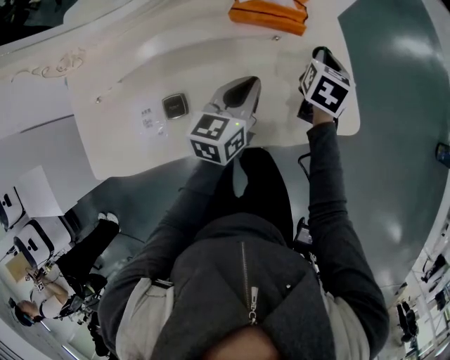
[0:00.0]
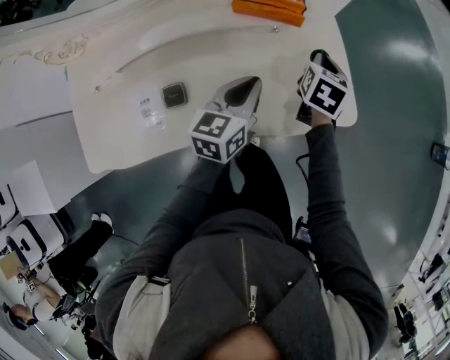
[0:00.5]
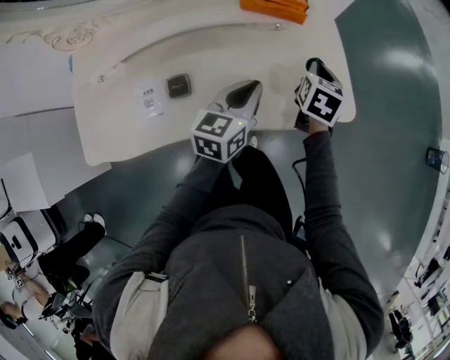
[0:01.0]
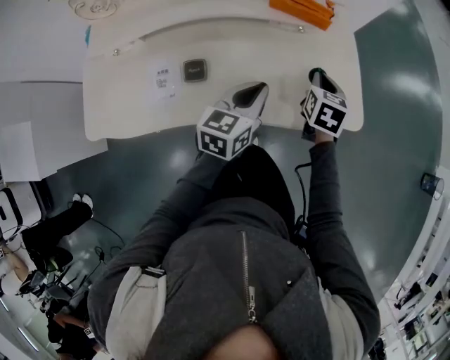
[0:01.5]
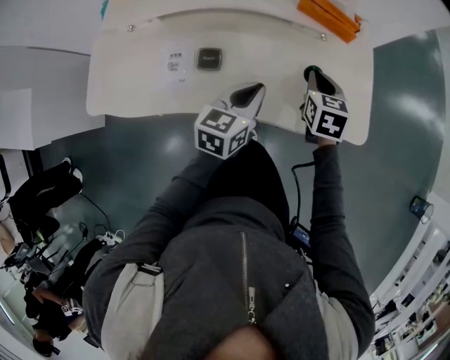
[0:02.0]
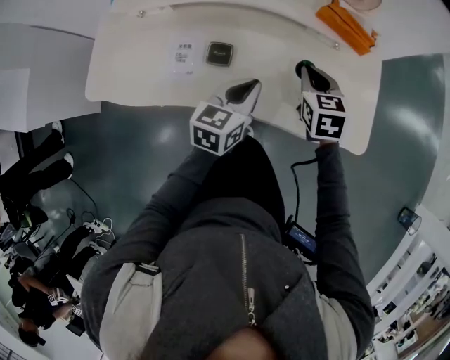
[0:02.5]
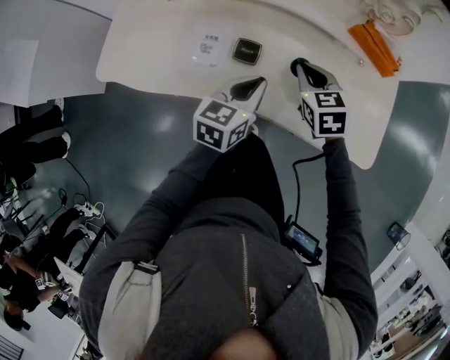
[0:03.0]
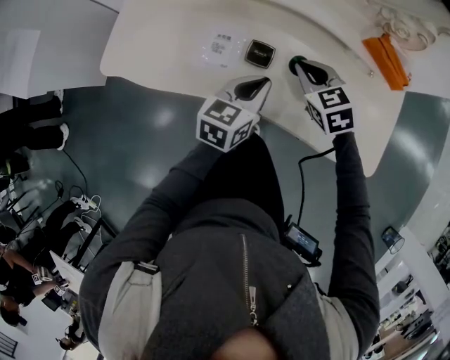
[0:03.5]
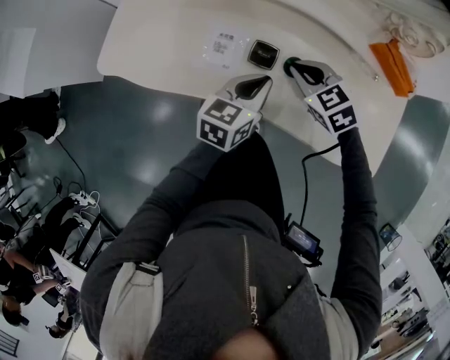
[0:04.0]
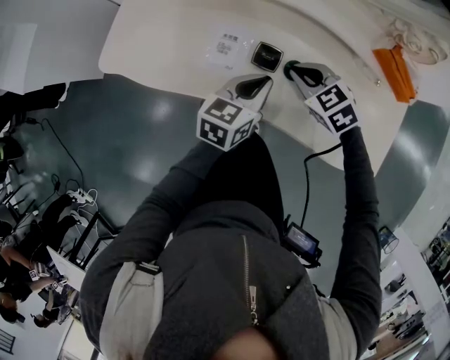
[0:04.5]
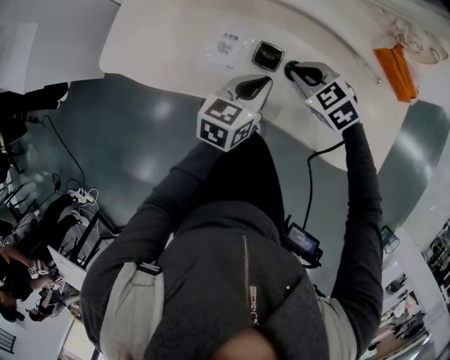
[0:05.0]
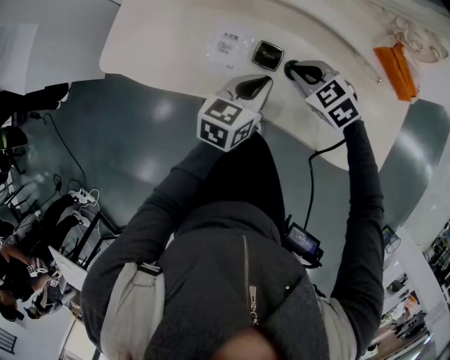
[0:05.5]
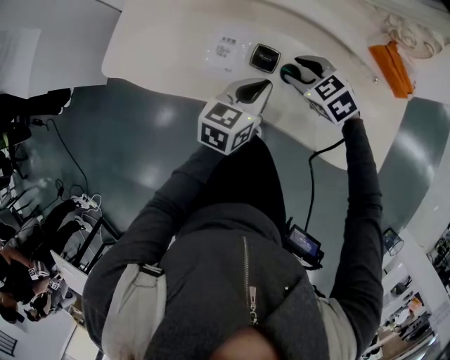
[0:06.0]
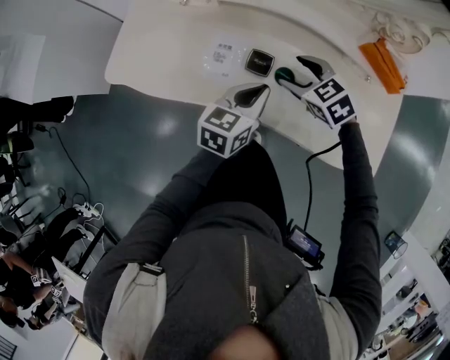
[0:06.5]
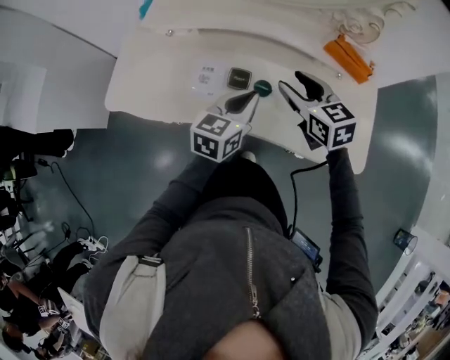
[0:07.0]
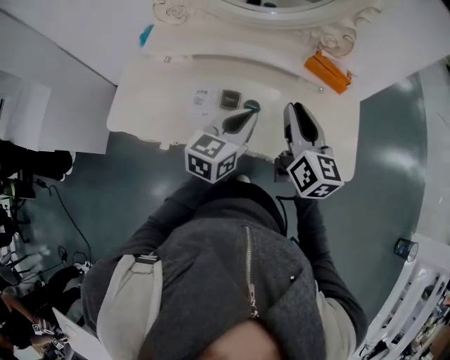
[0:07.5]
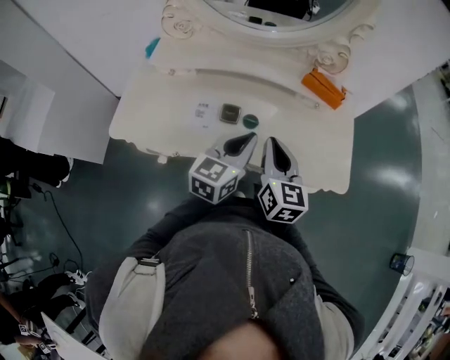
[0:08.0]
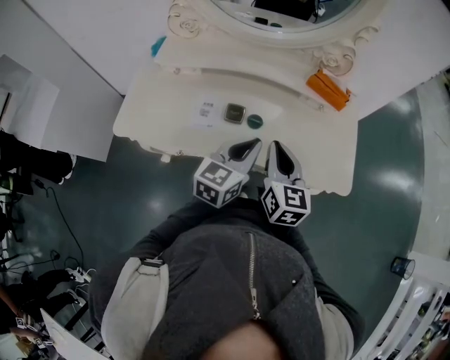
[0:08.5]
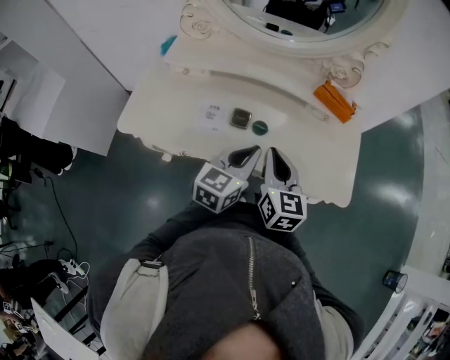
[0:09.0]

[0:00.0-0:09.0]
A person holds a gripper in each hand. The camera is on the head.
0:00.0 to 0:02.0: The left gripper goes approximately 10 cm backward, while the right gripper shifts some 15 cm backward and to the left, and rotates roughly 40 degrees.
0:02.0 to 0:04.5: The left gripper ends up roughly 15 cm from where it was. Meanwhile the right gripper moves approximately 20 cm, and swivels roughly 60 degrees.
0:04.5 to 0:07.0: The right gripper heads upward and to the right, covering approximately 15 cm, turns by roughly 40 degrees, and opens up. The left gripper moves upward, some 5 cm.
0:07.0 to 0:09.0: The left gripper goes roughly 5 cm backward; the right gripper shifts some 10 cm backward, rotates about 30 degrees, and closes its fingers.

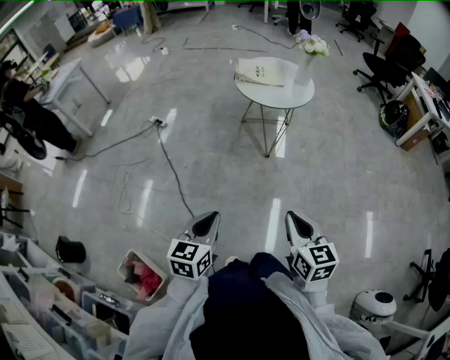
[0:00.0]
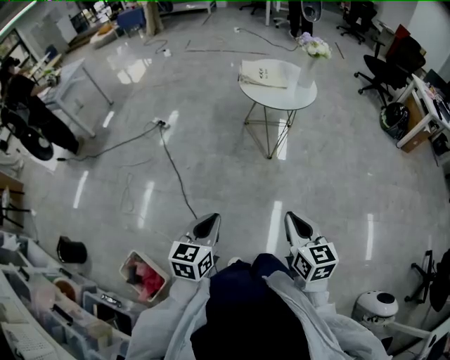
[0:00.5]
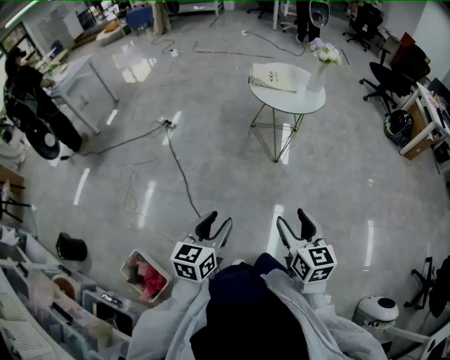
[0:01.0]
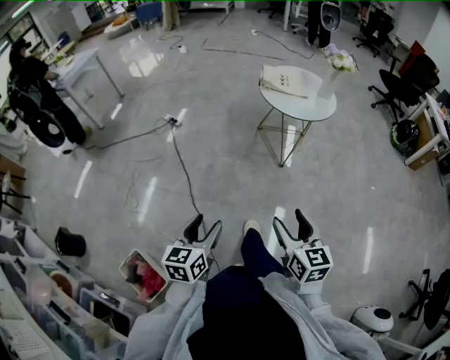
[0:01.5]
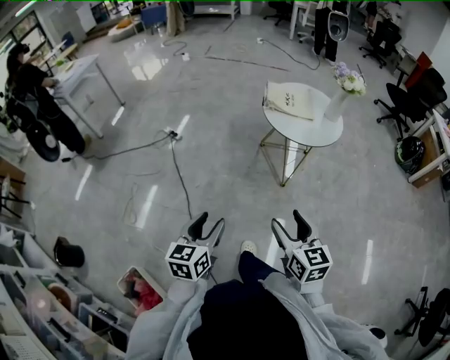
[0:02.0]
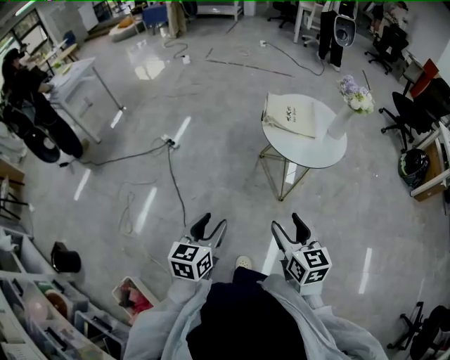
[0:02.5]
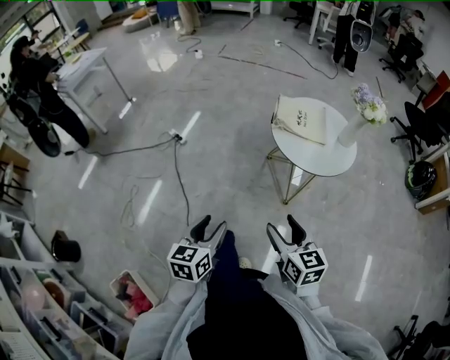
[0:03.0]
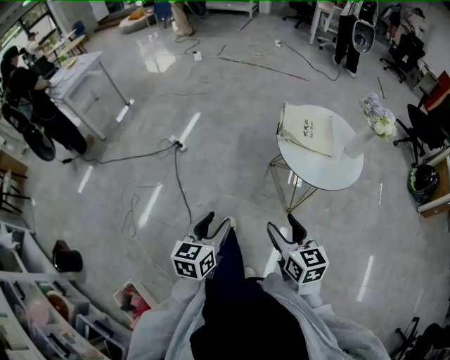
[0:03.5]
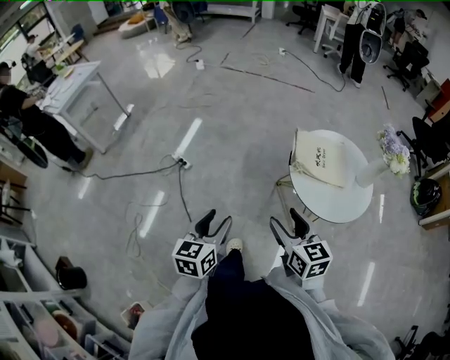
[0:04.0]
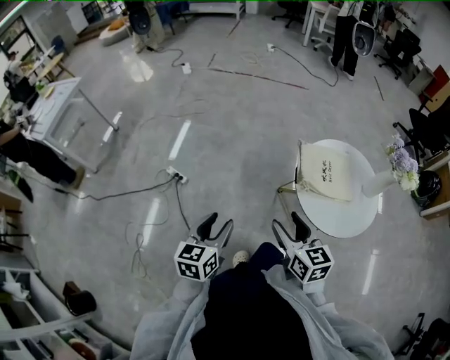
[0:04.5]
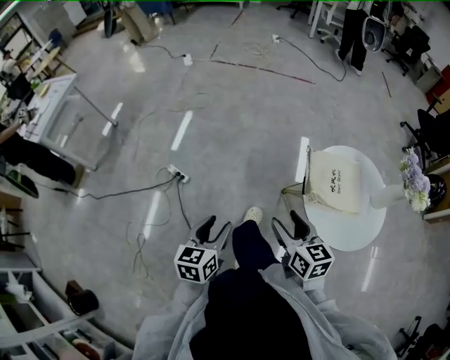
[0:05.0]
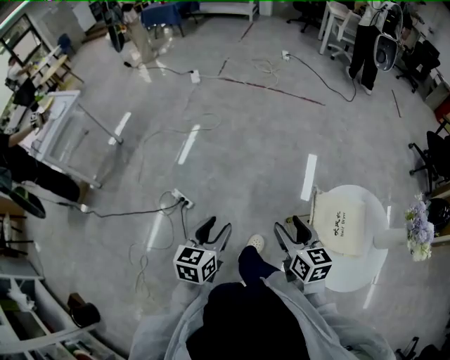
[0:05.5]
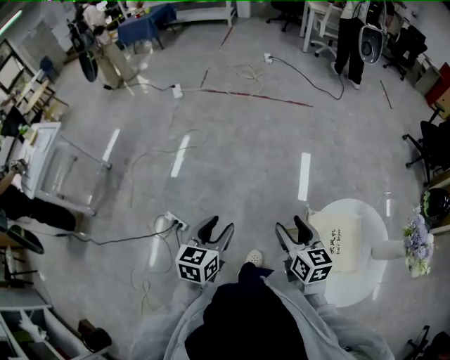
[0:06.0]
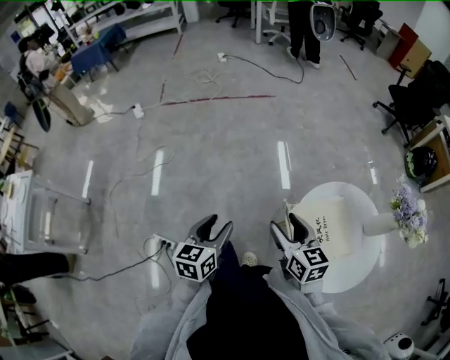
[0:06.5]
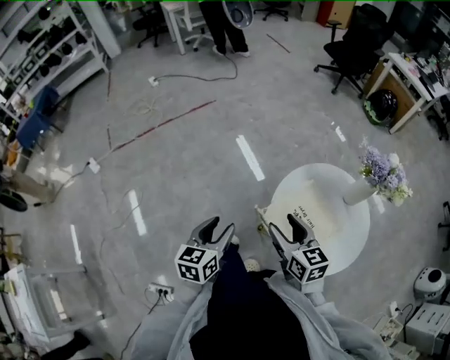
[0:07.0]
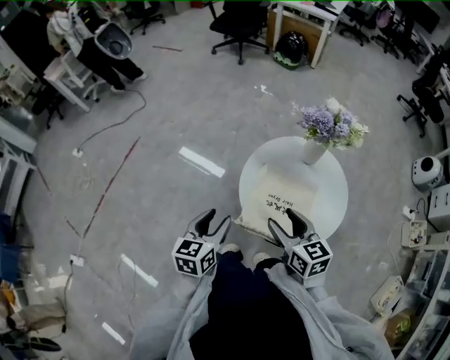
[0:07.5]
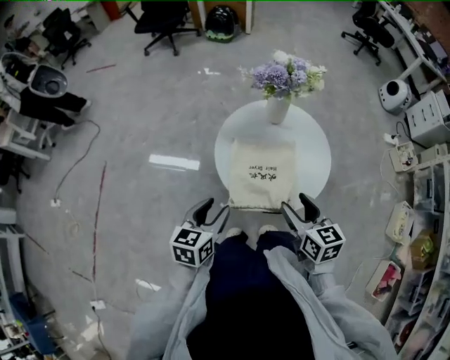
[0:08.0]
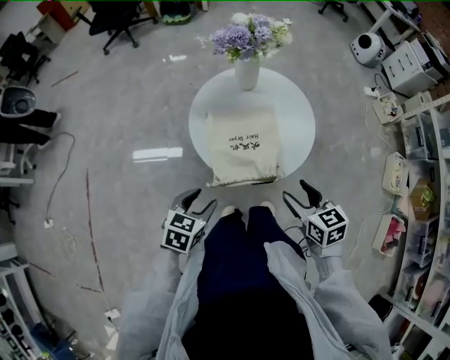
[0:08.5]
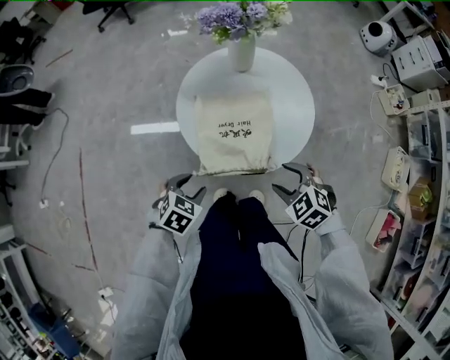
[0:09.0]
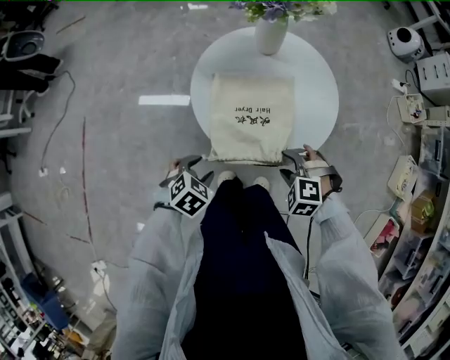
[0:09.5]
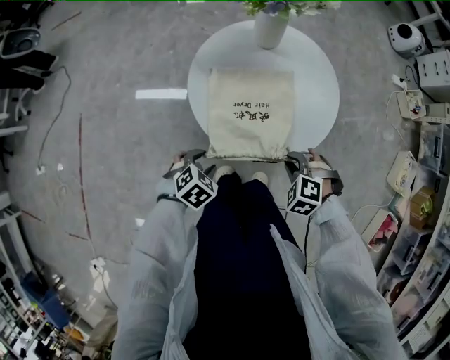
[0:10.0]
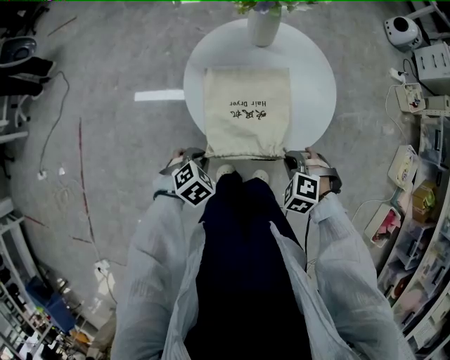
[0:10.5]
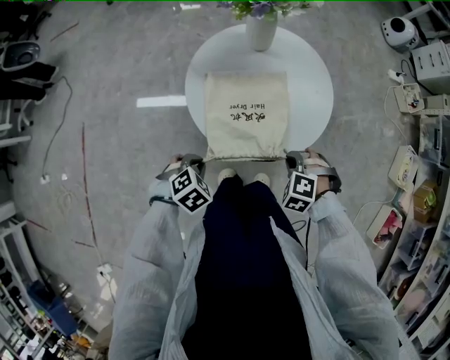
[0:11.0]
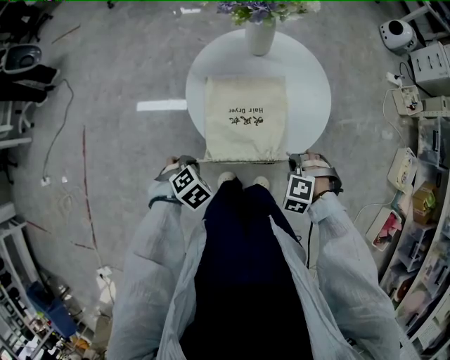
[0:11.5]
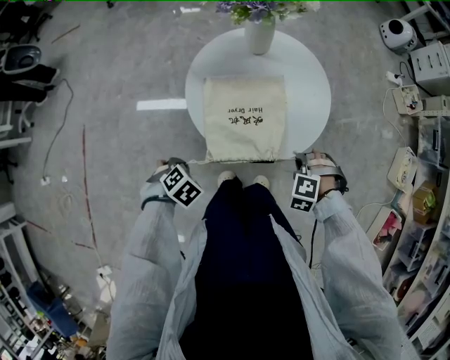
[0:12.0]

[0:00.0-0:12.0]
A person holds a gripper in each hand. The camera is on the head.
0:00.0 to 0:02.0: Both grippers travel together forward and to the left, about 15 cm. The right gripper opens its fingers; the left gripper opens up.
0:02.0 to 0:04.0: Both grippers move forward, roughly 35 cm.
0:04.0 to 0:06.0: The two grippers go some 40 cm forward.
0:06.0 to 0:08.0: The left gripper moves some 35 cm, and changes its angle by roughly 90 degrees; the right gripper ends up about 20 cm from where it was, and changes its angle by approximately 90 degrees.
0:08.0 to 0:10.0: The two grippers go about 20 cm downward. The right gripper rolls counterclockwise, seen from behind, by about 60 degrees, and closes up. The left gripper tilts its fingers about 40 degrees downward.
0:10.0 to 0:12.0: The right gripper moves approximately 5 cm. The left gripper ends up approximately 5 cm from where it was, and closes up.

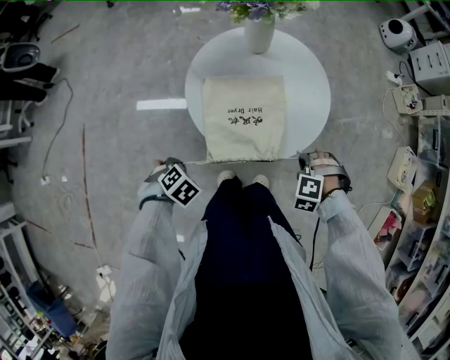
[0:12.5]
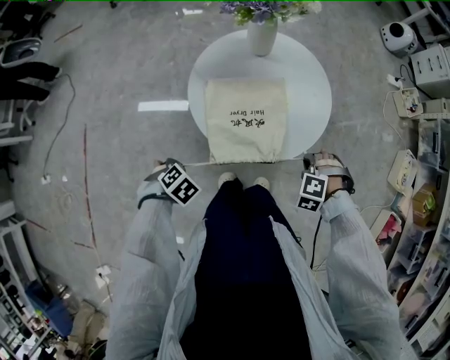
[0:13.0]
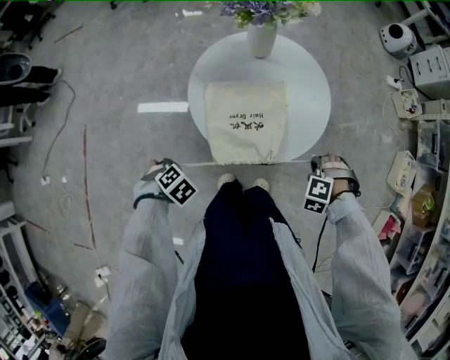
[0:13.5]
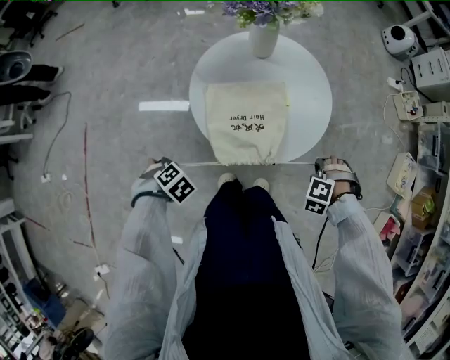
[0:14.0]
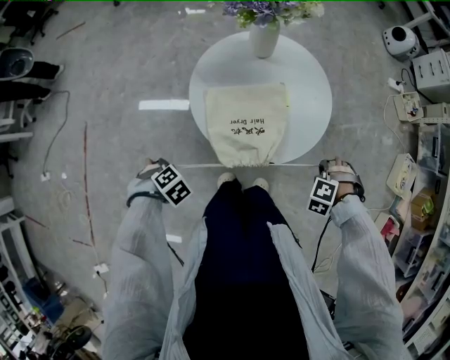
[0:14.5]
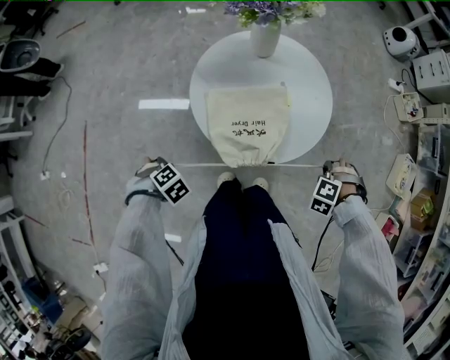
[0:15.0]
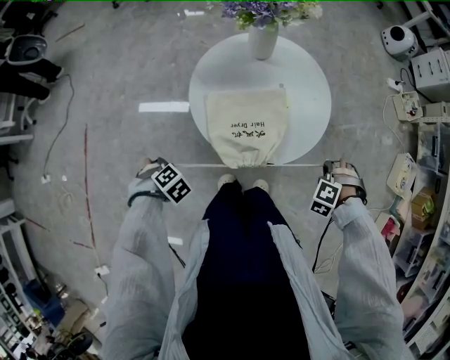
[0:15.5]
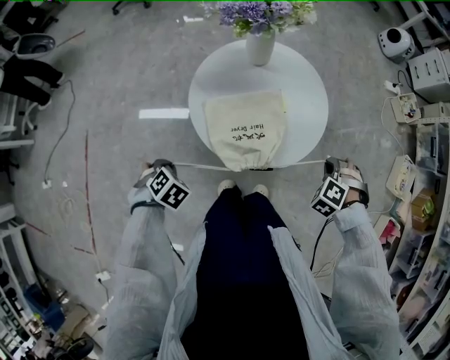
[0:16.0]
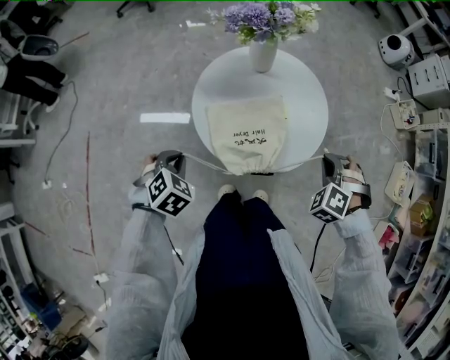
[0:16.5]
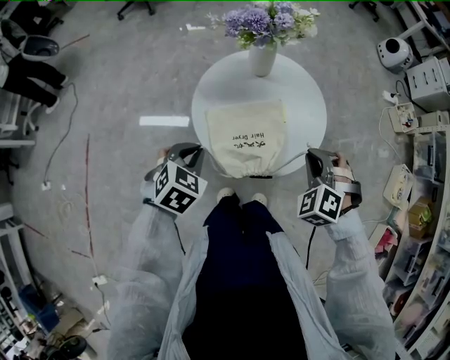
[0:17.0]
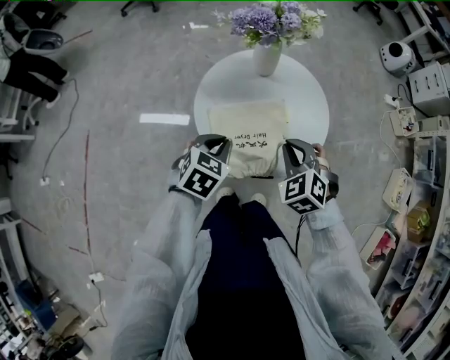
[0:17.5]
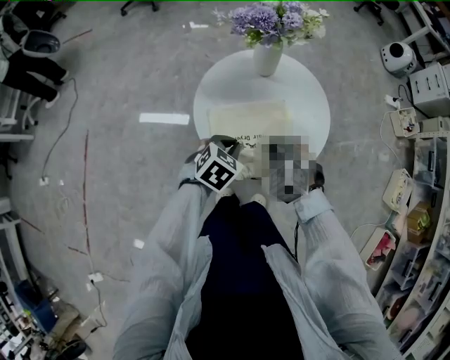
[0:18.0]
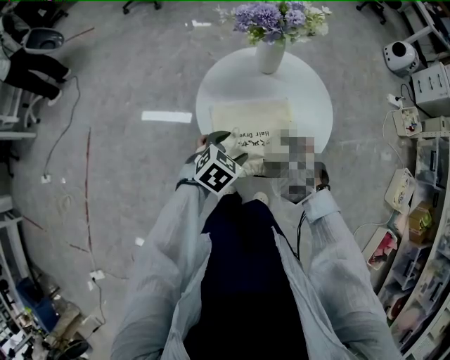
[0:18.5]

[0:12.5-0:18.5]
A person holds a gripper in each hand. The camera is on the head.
0:12.5 to 0:14.5: The left gripper changes place by approximately 5 cm. The right gripper ends up approximately 10 cm from where it was.
0:14.5 to 0:16.5: Both grippers travel together upward, approximately 10 cm. The left gripper swivels approximately 30 degrees. Meanwhile the right gripper turns by about 30 degrees.
0:16.5 to 0:18.5: The right gripper goes about 15 cm to the left, rotates some 30 degrees, and opens, while the left gripper shifts approximately 15 cm to the right and forward, rotates about 20 degrees, and opens its fingers.
